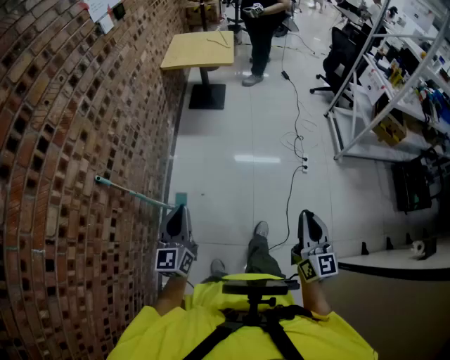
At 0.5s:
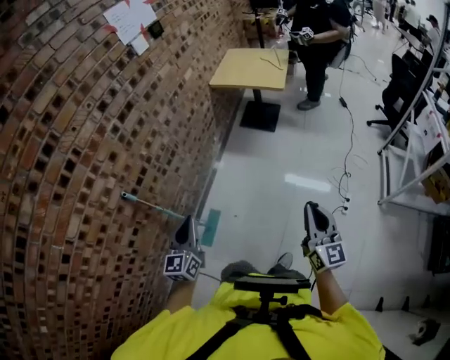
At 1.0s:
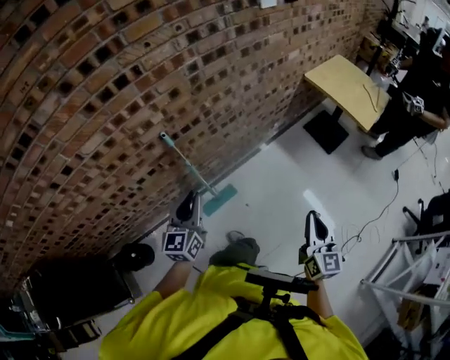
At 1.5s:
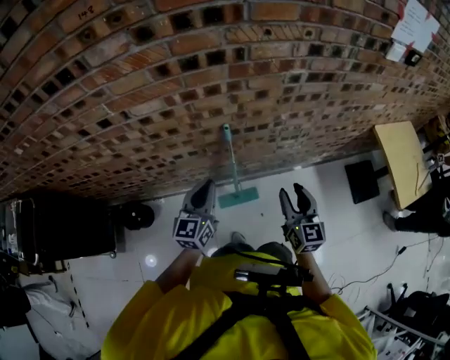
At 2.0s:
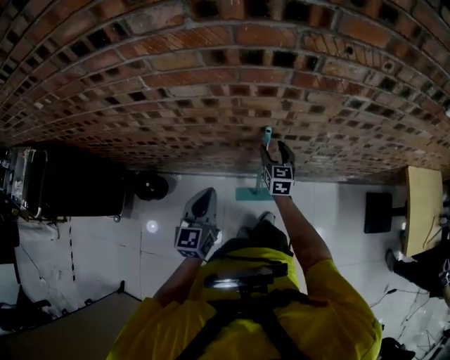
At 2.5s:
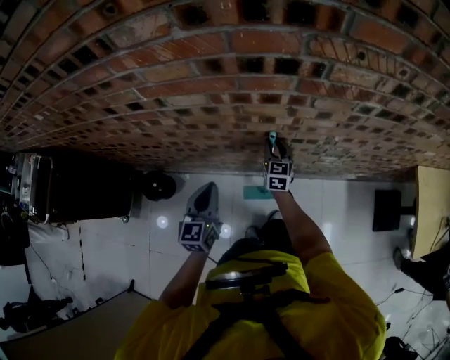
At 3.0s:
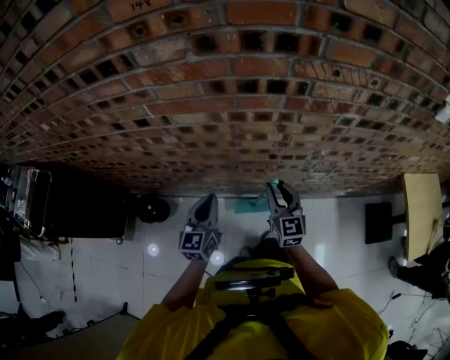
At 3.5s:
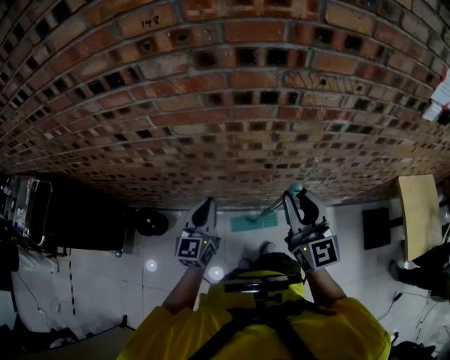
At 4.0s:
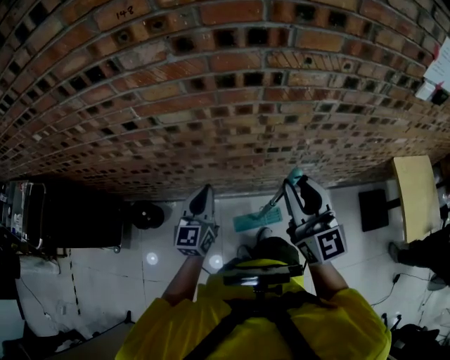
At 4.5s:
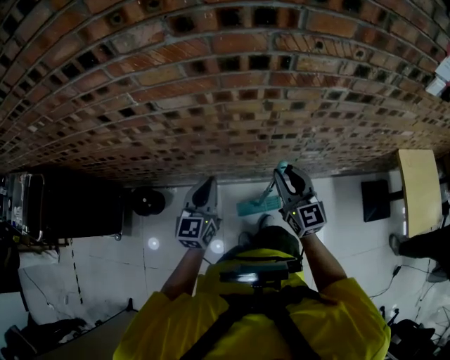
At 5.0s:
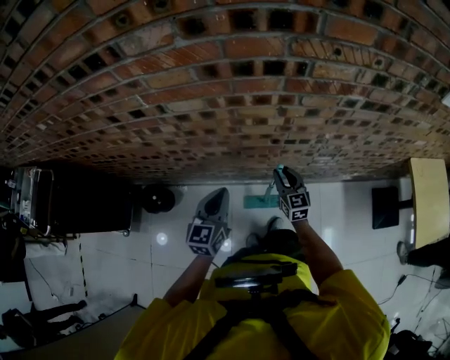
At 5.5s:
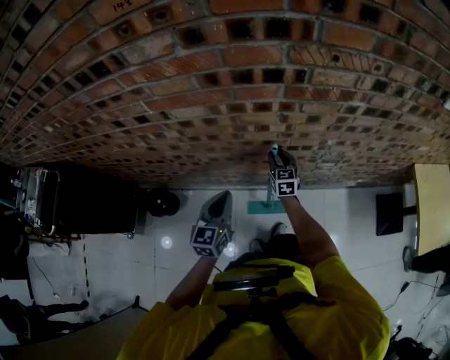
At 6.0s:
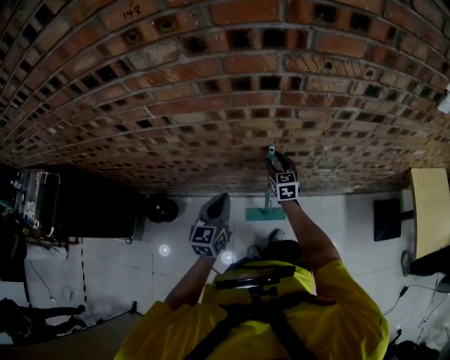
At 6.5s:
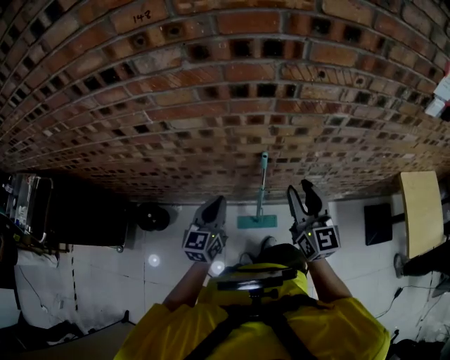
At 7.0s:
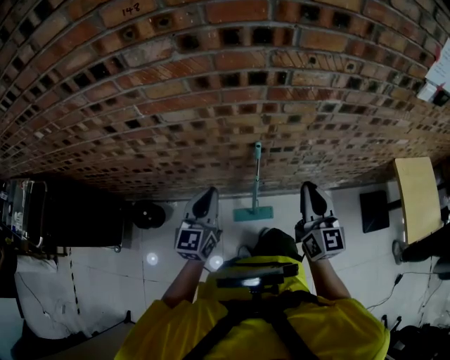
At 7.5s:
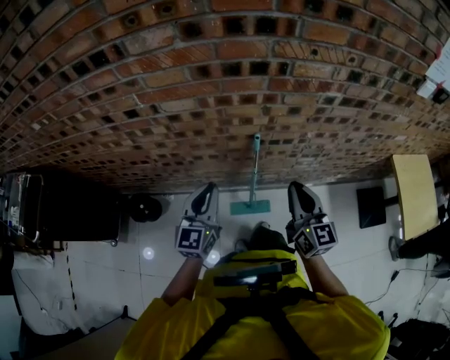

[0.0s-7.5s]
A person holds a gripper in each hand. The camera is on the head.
0.0s to 2.0s: The left gripper ends up approximately 25 cm from where it was, and swivels roughly 80 degrees. The right gripper changes place by roughly 80 cm, rotates some 90 degrees, and opens.
2.0s to 4.0s: The right gripper moves upward and backward, some 35 cm, swivels about 30 degrees, and closes its fingers, while the left gripper moves upward, approximately 5 cm.
4.0s to 5.5s: The left gripper goes some 5 cm downward; the right gripper goes roughly 40 cm downward and forward, and angles its fingers downward, by roughly 30 degrees.
5.5s to 7.5s: The right gripper heads upward and backward, covering roughly 30 cm, turns by some 20 degrees, and closes. Meanwhile the left gripper moves upward, approximately 10 cm.

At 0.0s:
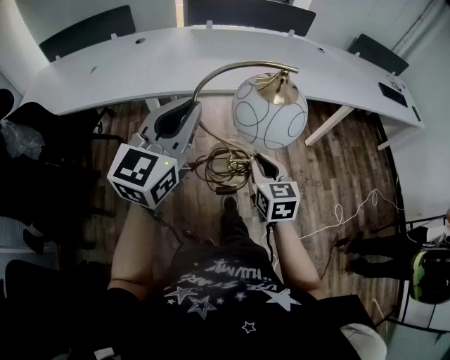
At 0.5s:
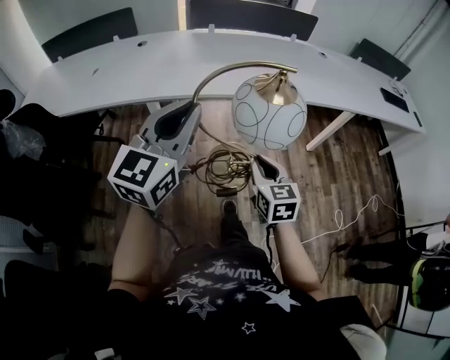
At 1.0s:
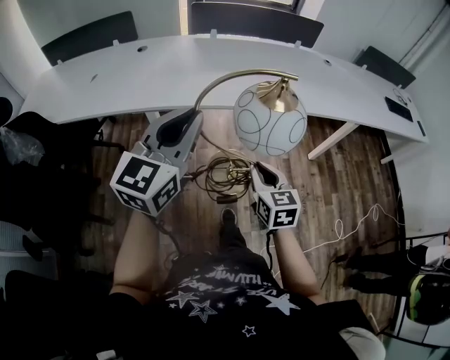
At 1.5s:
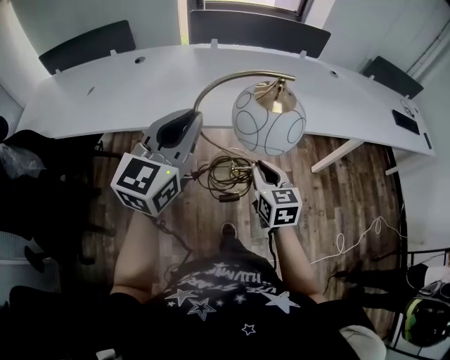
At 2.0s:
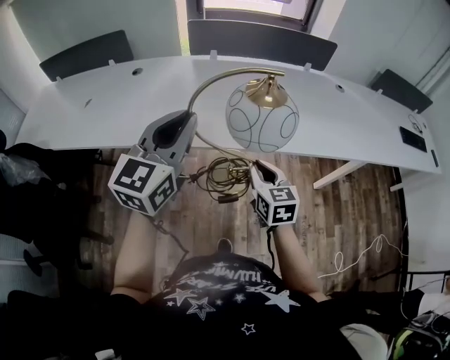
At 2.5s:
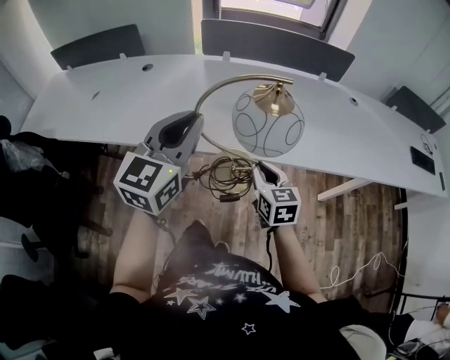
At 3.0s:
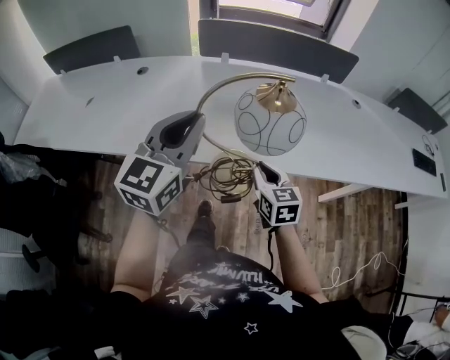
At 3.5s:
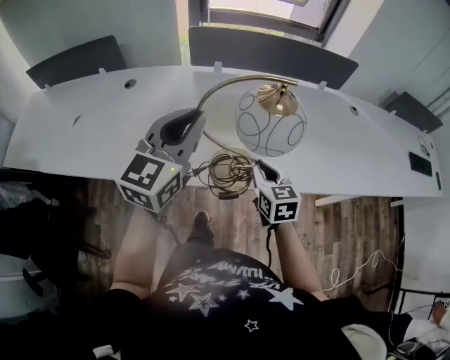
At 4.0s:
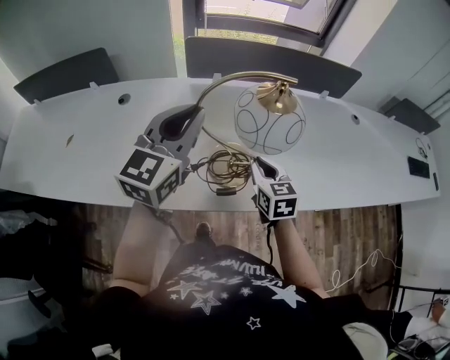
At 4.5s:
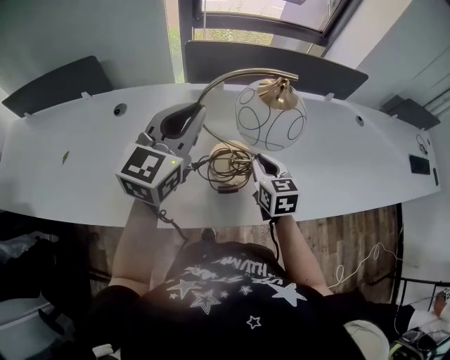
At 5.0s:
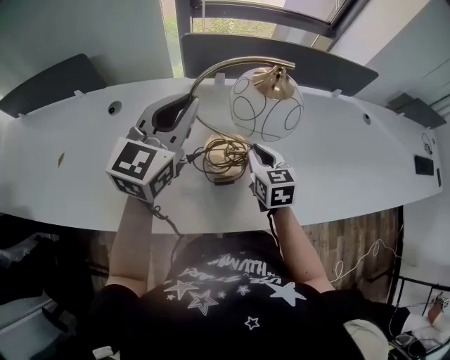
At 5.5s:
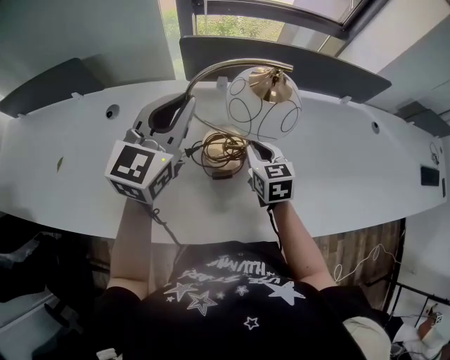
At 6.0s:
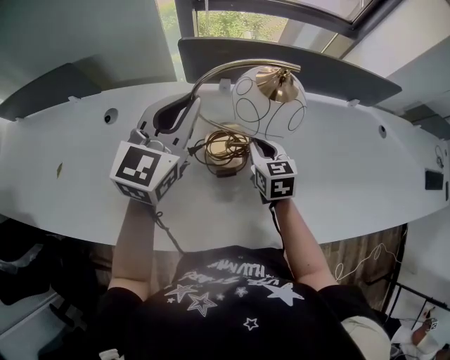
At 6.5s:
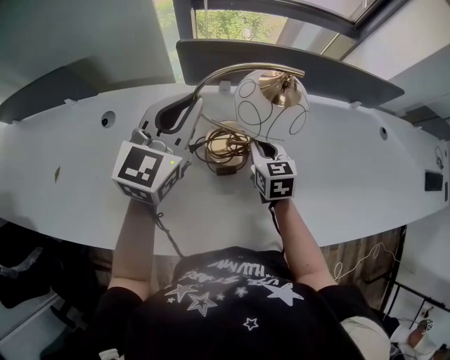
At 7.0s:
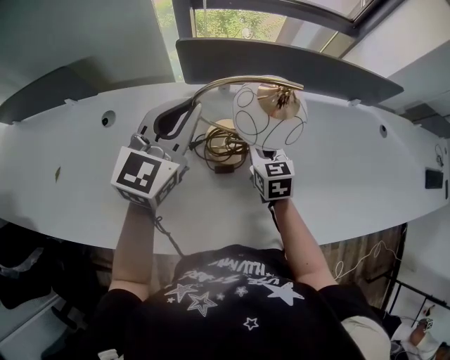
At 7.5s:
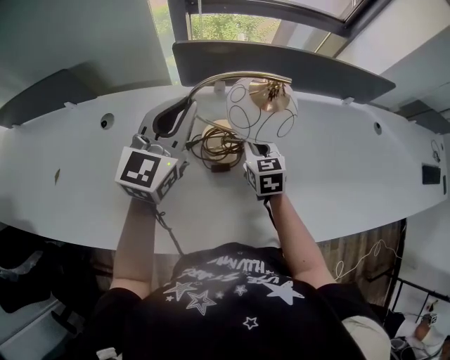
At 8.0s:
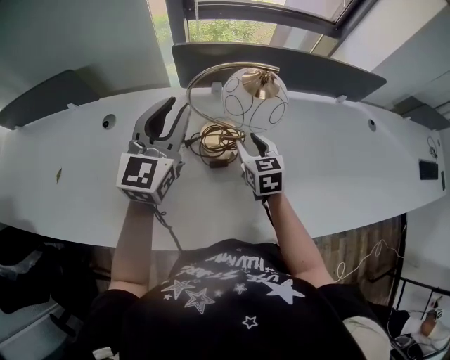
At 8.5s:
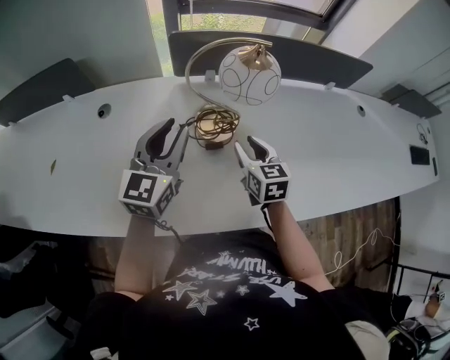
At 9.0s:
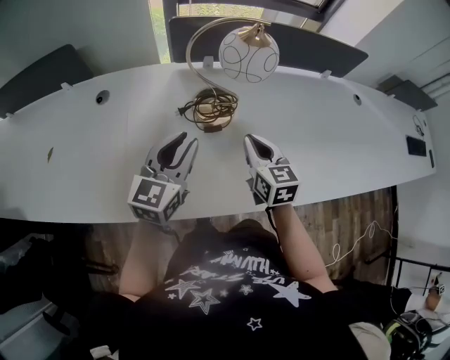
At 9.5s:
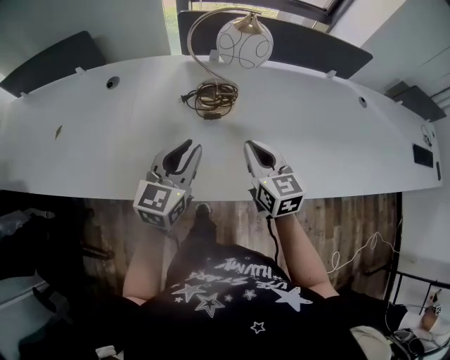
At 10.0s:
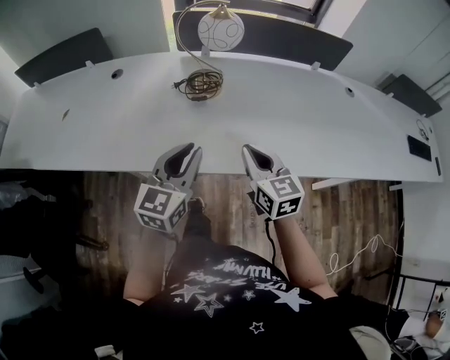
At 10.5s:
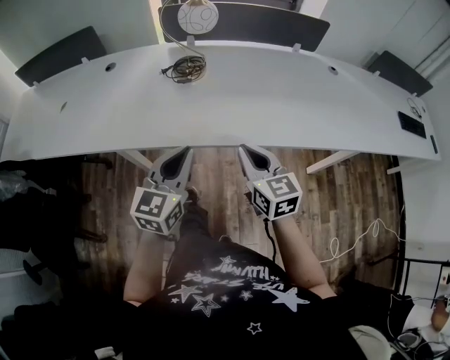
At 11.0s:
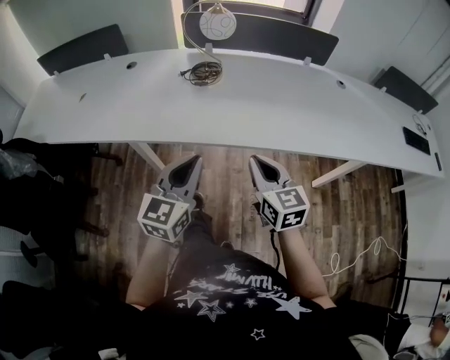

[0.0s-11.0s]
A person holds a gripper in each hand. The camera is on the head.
0.0s to 2.0s: Both grippers move forward, approximately 25 cm.
2.0s to 3.5s: The grippers both shift forward by about 20 cm.
3.5s to 5.5s: The two grippers go approximately 25 cm forward.
5.5s to 7.5s: The right gripper is displaced forward by about 5 cm.
7.5s to 9.0s: The right gripper goes some 15 cm backward, and opens and closes again. Meanwhile the left gripper moves backward and downward, roughly 20 cm.
9.0s to 11.0s: The left gripper shifts approximately 40 cm backward and to the right, and closes; the right gripper is displaced backward by roughly 35 cm.

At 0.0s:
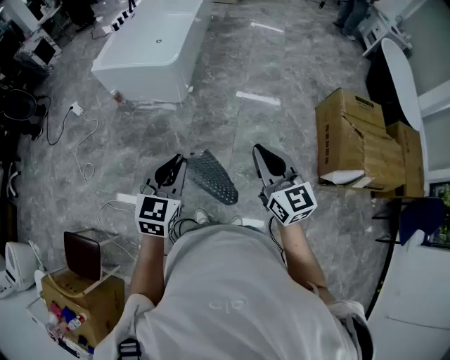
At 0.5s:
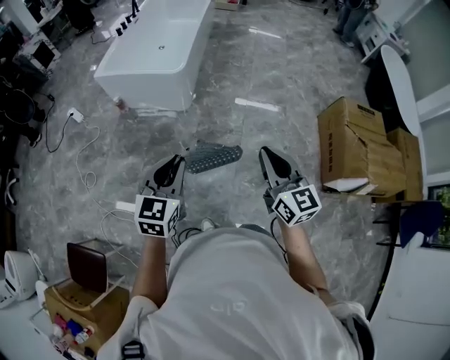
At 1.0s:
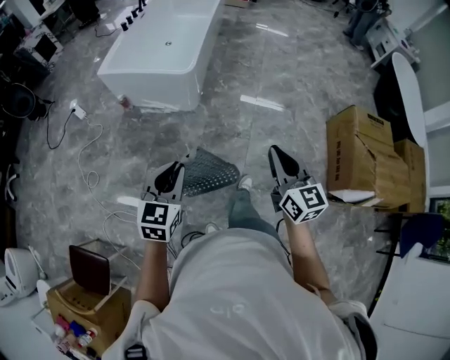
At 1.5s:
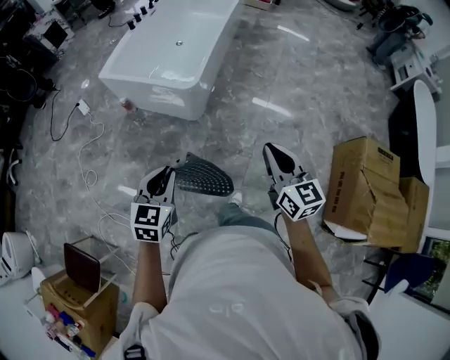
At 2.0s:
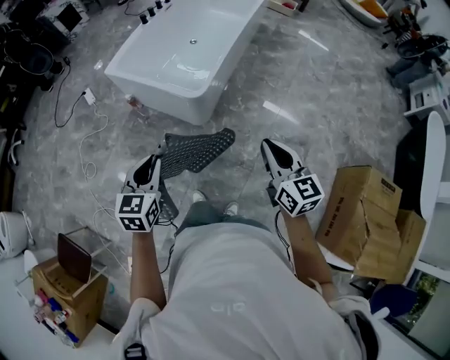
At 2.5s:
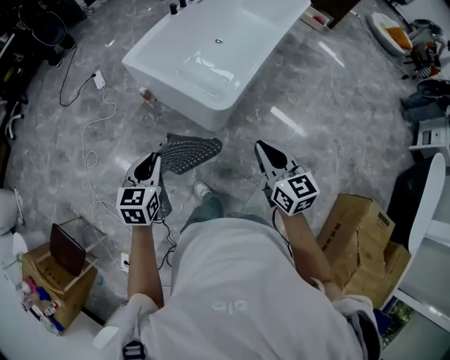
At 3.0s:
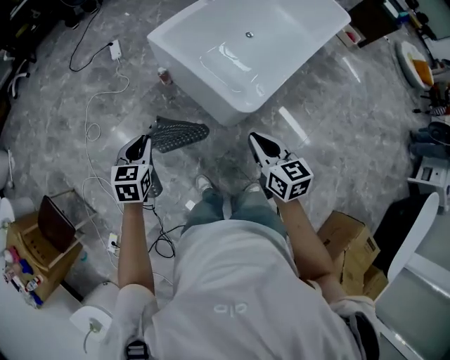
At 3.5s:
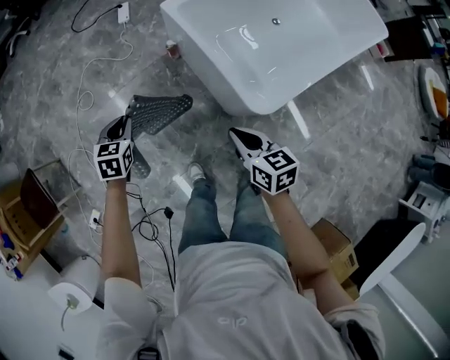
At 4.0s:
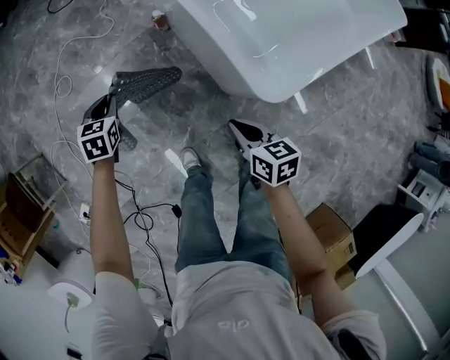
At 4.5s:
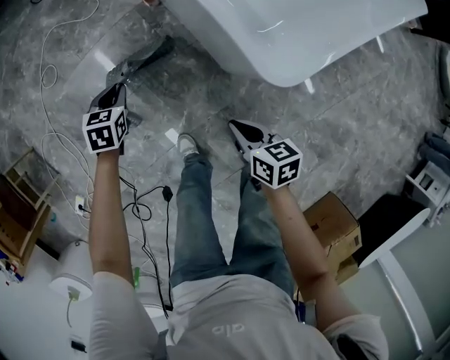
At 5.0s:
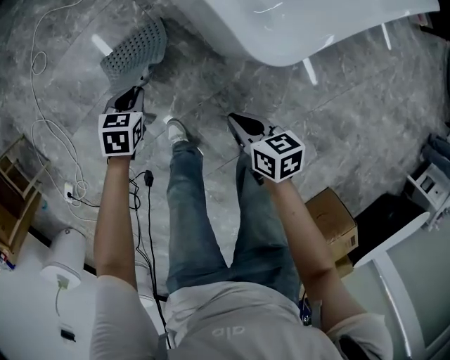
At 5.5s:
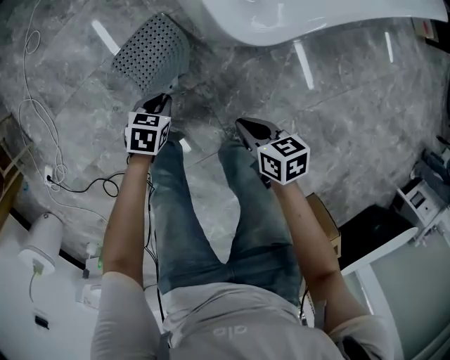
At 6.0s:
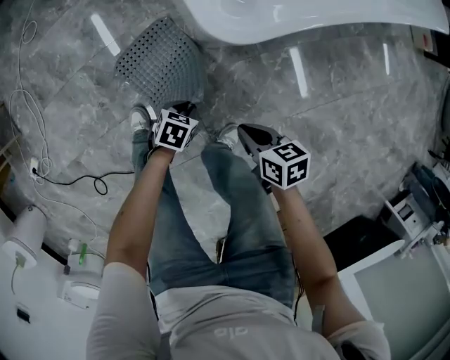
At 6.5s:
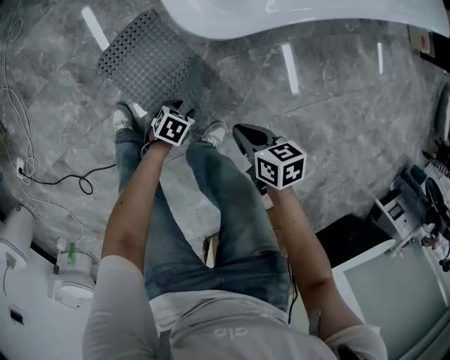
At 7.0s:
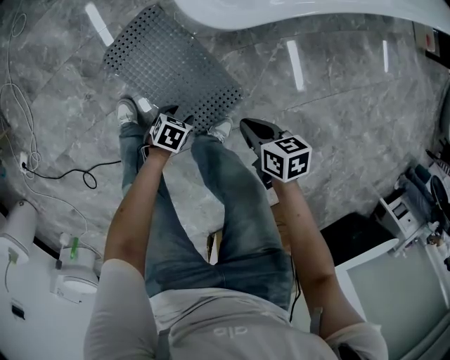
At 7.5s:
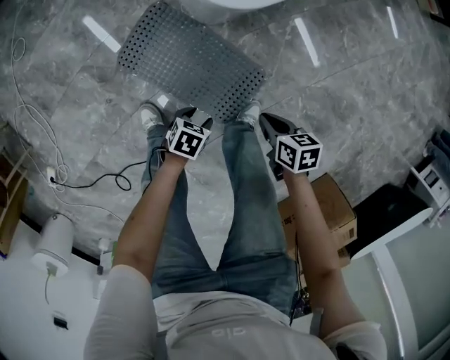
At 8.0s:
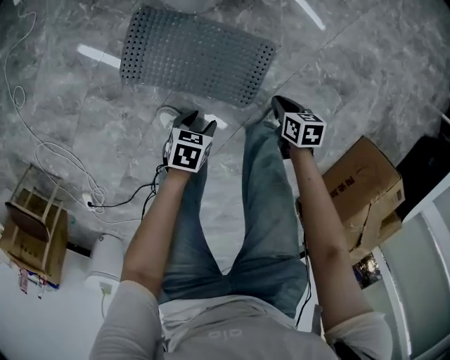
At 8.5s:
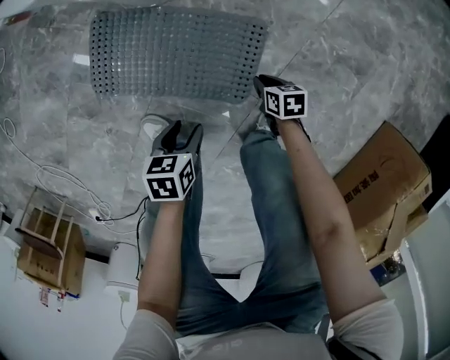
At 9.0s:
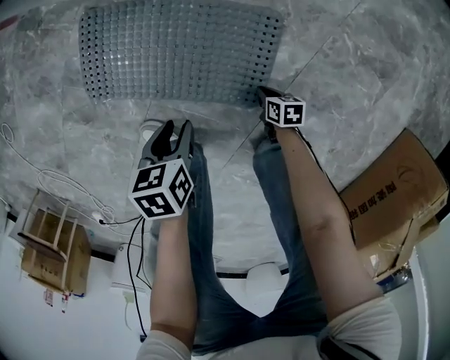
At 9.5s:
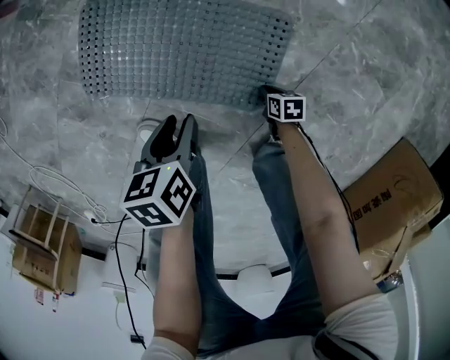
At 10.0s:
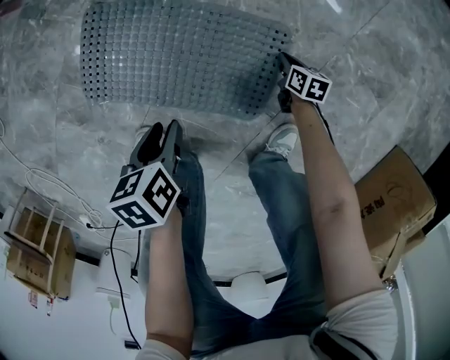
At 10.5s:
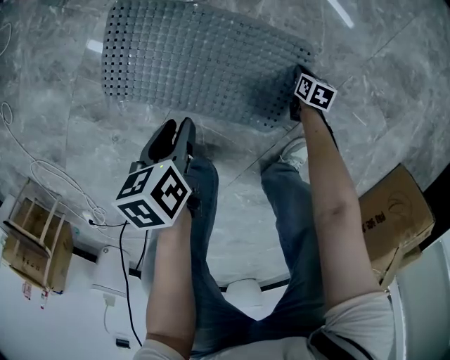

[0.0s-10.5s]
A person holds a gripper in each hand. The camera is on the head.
0.0s to 2.0s: The two grippers travel together, forward, some 50 cm. The left gripper rotates some 30 degrees.
2.0s to 4.0s: The two grippers travel together, roughly 50 cm. The right gripper turns by approximately 50 degrees. Meanwhile the left gripper turns by roughly 40 degrees.
4.0s to 6.5s: The left gripper changes place by about 70 cm, changes its angle by some 40 degrees, and opens its fingers, while the right gripper ends up about 40 cm from where it was, and changes its angle by approximately 20 degrees.
6.5s to 8.5s: The left gripper ends up some 15 cm from where it was. The right gripper goes some 30 cm downward, and changes its angle by roughly 40 degrees.
8.5s to 10.5s: The right gripper shifts some 20 cm downward and forward, while the left gripper shifts some 15 cm forward and to the left, and swivels roughly 30 degrees.
